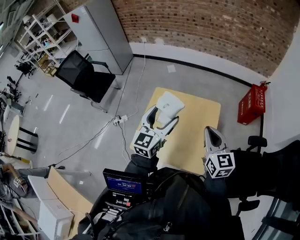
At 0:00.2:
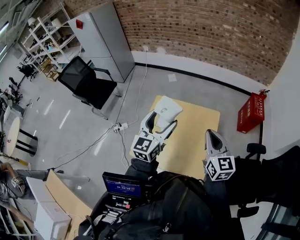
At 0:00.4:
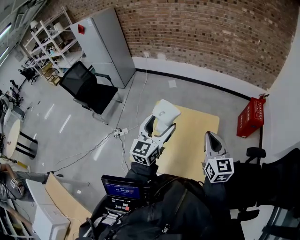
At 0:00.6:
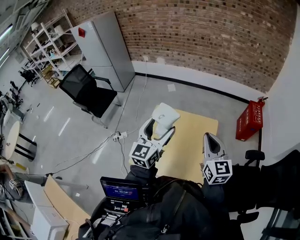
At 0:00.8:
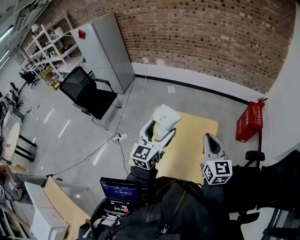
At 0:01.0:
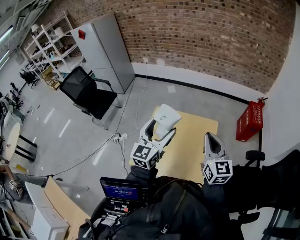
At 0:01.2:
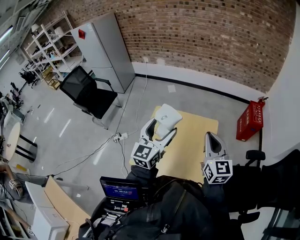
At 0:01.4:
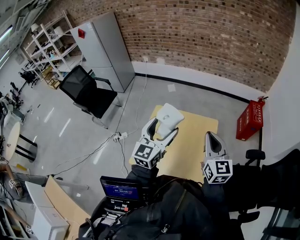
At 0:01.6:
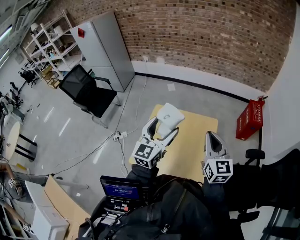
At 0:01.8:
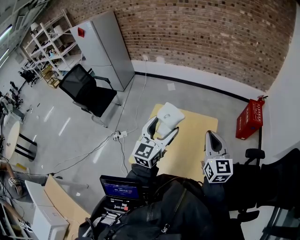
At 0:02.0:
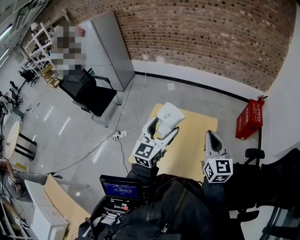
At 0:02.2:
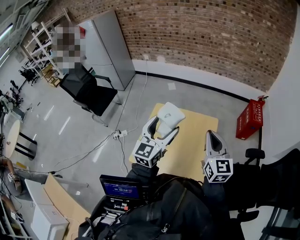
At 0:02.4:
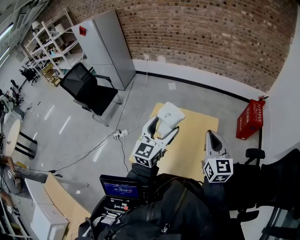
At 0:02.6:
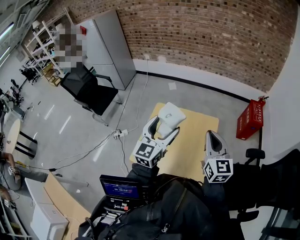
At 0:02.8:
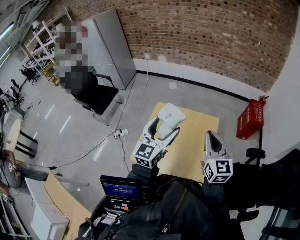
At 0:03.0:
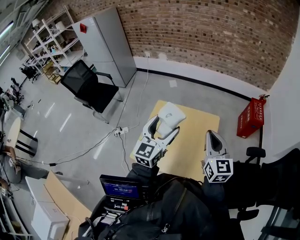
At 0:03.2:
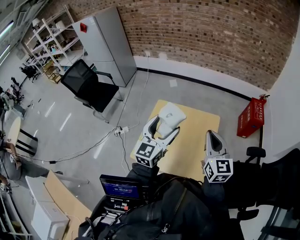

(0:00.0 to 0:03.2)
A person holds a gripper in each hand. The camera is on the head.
0:00.0 - 0:03.2: The grippers stay close to where they were, moving slightly.

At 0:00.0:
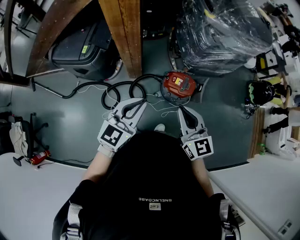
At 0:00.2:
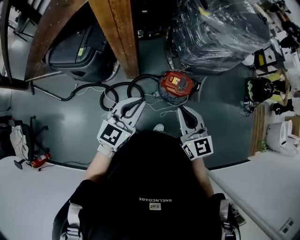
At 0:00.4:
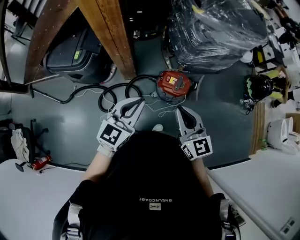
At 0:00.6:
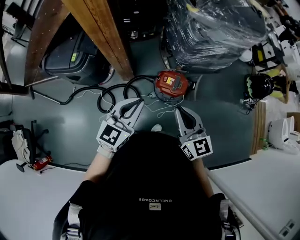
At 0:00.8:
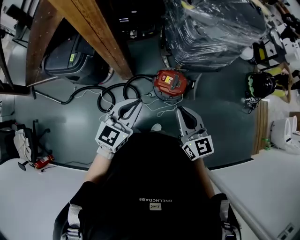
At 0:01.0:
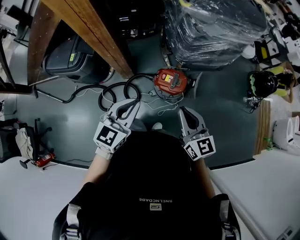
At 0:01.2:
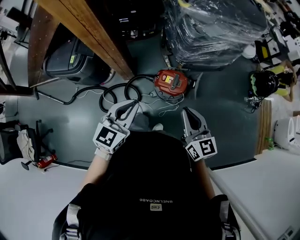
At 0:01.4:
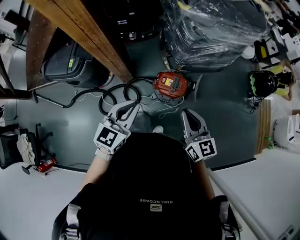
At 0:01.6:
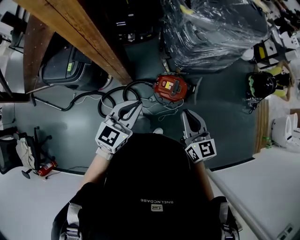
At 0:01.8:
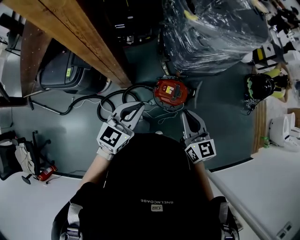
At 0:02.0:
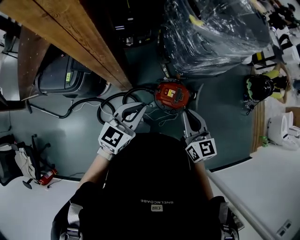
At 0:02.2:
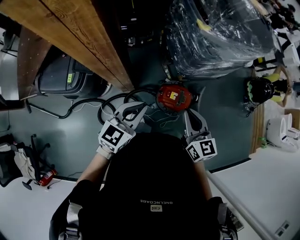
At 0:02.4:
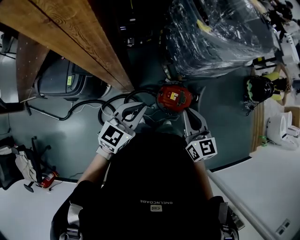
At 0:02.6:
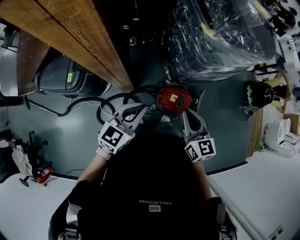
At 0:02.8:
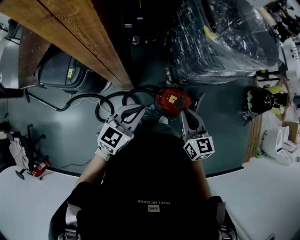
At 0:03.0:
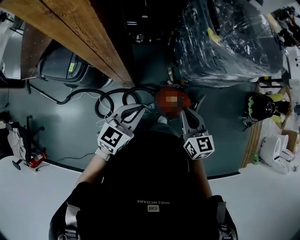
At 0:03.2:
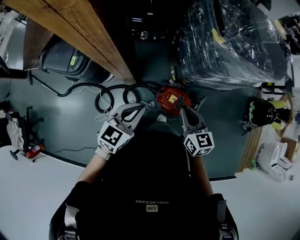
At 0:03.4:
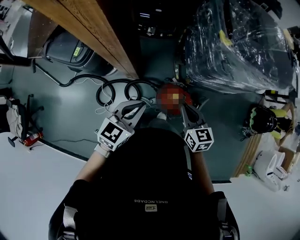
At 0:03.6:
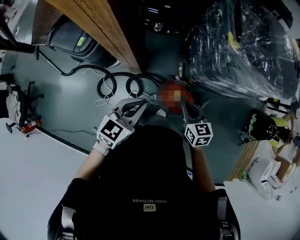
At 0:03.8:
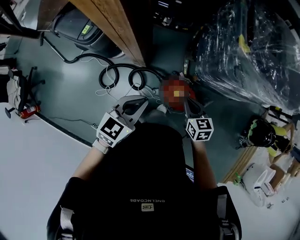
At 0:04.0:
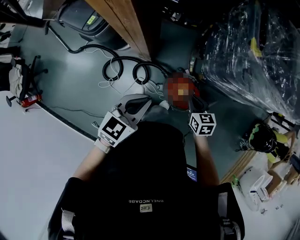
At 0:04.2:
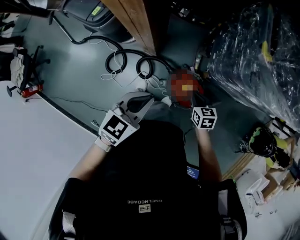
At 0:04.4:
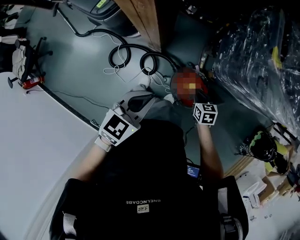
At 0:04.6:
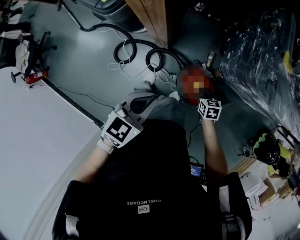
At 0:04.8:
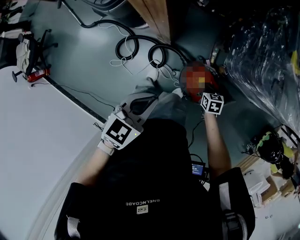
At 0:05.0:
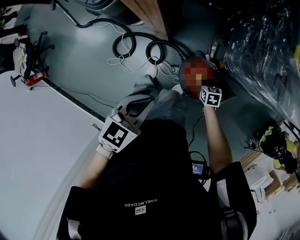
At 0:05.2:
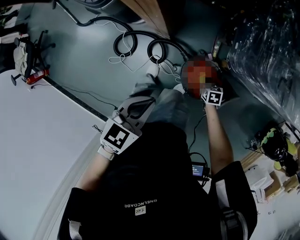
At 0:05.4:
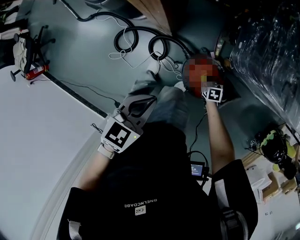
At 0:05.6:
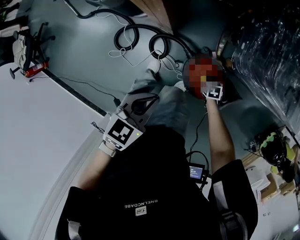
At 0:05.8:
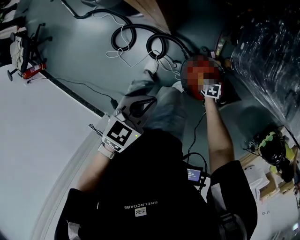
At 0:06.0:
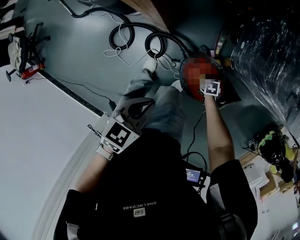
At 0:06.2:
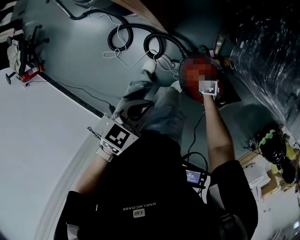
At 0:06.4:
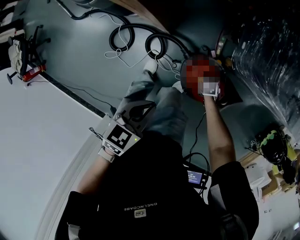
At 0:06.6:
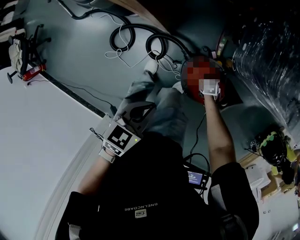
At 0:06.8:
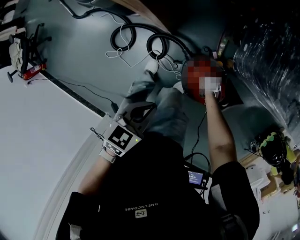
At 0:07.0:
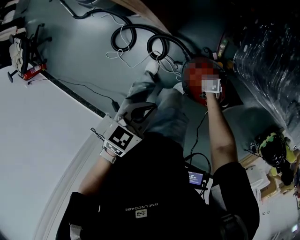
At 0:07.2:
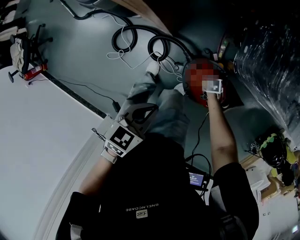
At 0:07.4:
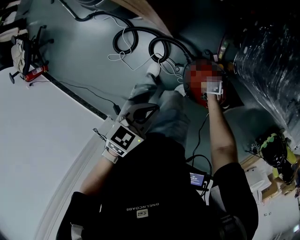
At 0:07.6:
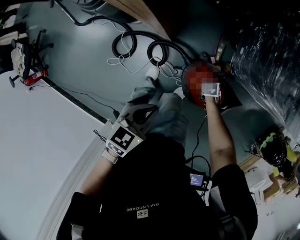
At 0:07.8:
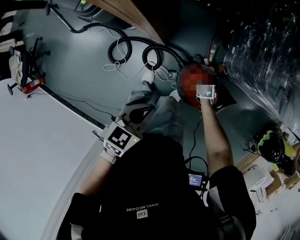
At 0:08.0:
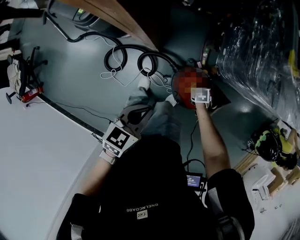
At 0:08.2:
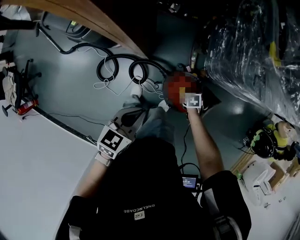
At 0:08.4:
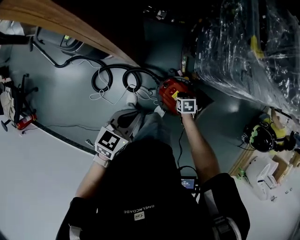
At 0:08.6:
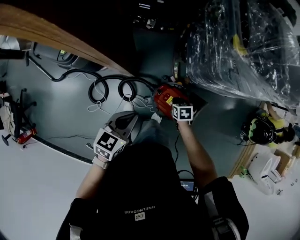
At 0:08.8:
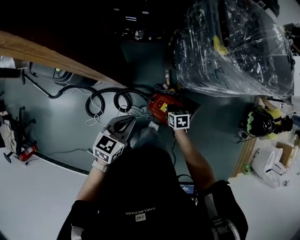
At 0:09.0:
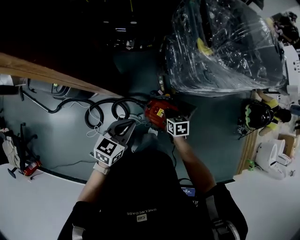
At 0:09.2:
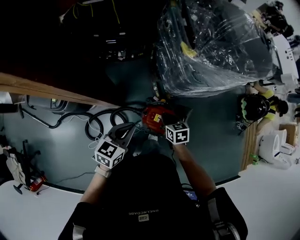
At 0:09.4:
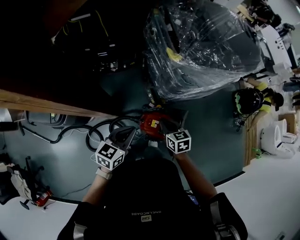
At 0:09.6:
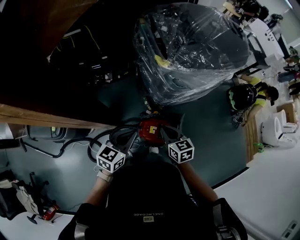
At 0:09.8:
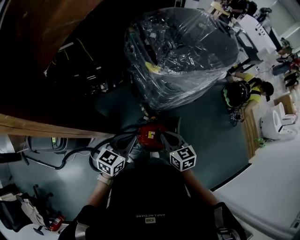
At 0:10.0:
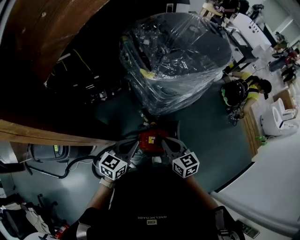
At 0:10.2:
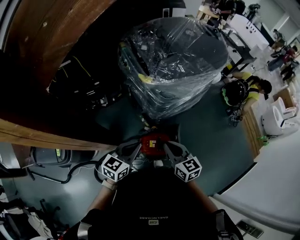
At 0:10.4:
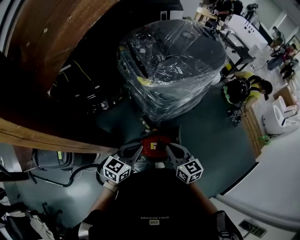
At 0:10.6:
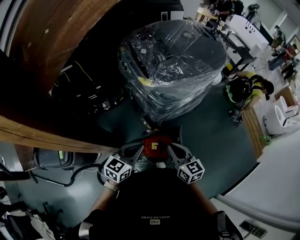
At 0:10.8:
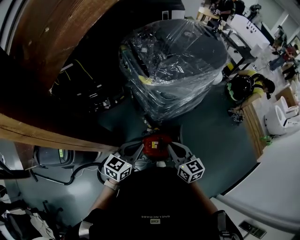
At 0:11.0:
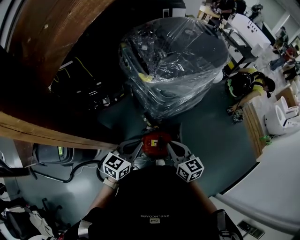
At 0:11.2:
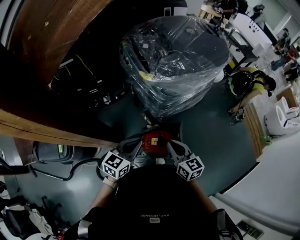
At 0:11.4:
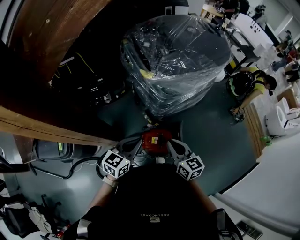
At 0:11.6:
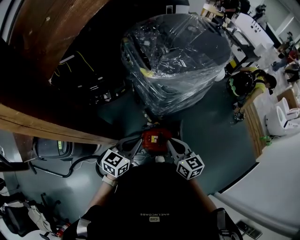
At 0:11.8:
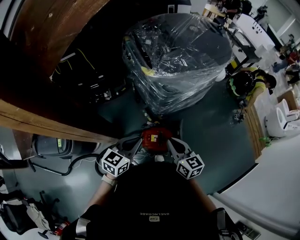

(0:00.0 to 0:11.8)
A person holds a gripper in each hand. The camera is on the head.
0:00.0 - 0:01.4: The right gripper heads to the right, covering some 15 cm, while the left gripper travels to the right and forward by some 10 cm.
0:01.4 - 0:03.0: Both grippers move forward and to the left, some 20 cm.
0:03.0 - 0:04.4: The left gripper heads downward, covering approximately 10 cm, and turns by roughly 20 degrees. The right gripper shifts roughly 30 cm downward, and changes its angle by some 40 degrees.
0:04.4 - 0:06.0: The left gripper shifts some 15 cm downward. The right gripper is displaced downward by approximately 30 cm, and swivels approximately 20 degrees.
0:06.0 - 0:07.4: The grippers stay close to where they were, moving slightly.
0:07.4 - 0:08.8: The left gripper shifts about 15 cm upward, while the right gripper travels upward by some 30 cm, and turns by roughly 30 degrees.
0:08.8 - 0:10.4: The left gripper moves some 20 cm, and turns by approximately 30 degrees. Meanwhile the right gripper is displaced upward by roughly 35 cm, and tilts its fingers approximately 40 degrees upward.
0:10.4 - 0:11.8: The grippers stay close to where they were, moving slightly.

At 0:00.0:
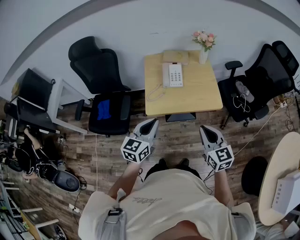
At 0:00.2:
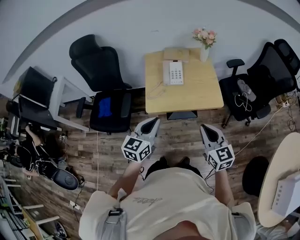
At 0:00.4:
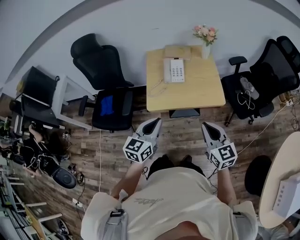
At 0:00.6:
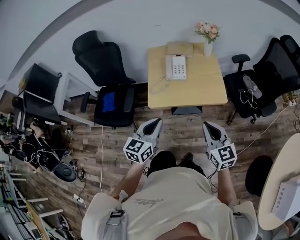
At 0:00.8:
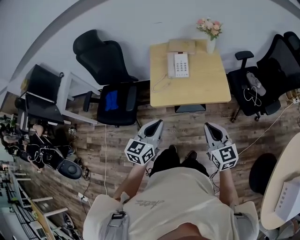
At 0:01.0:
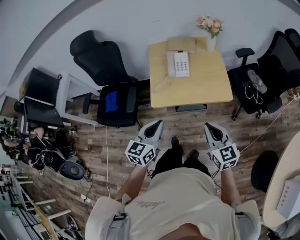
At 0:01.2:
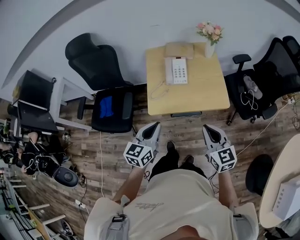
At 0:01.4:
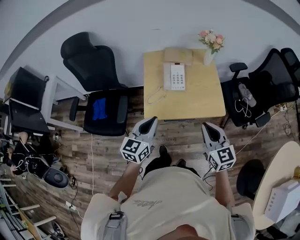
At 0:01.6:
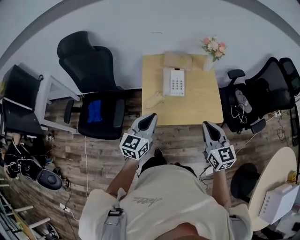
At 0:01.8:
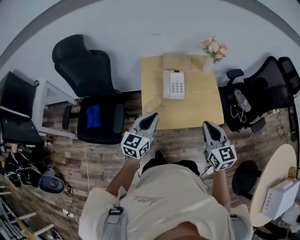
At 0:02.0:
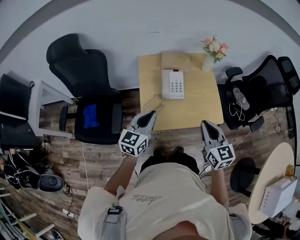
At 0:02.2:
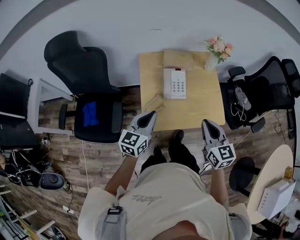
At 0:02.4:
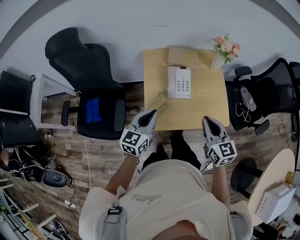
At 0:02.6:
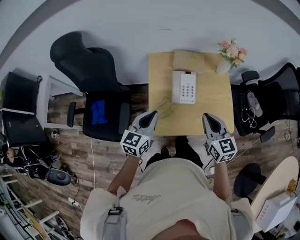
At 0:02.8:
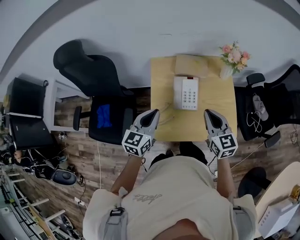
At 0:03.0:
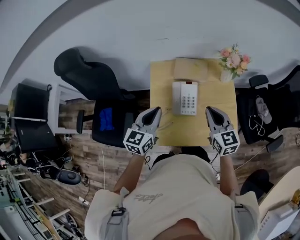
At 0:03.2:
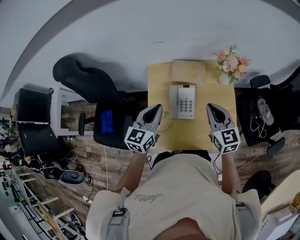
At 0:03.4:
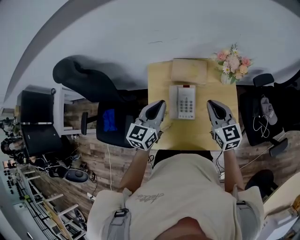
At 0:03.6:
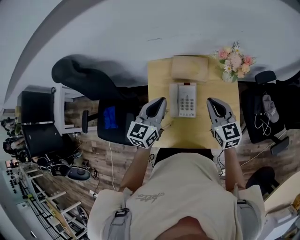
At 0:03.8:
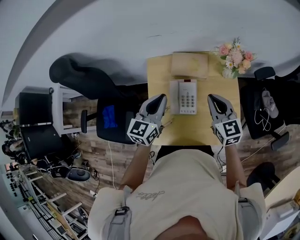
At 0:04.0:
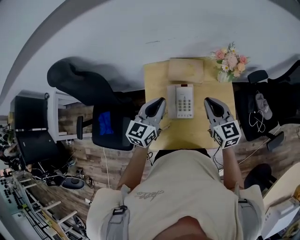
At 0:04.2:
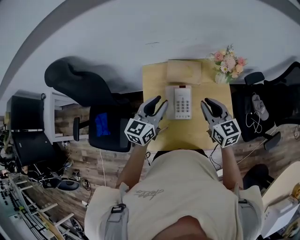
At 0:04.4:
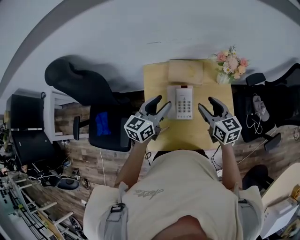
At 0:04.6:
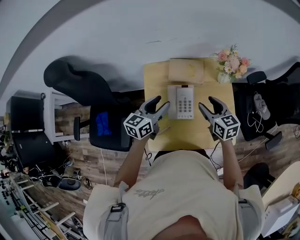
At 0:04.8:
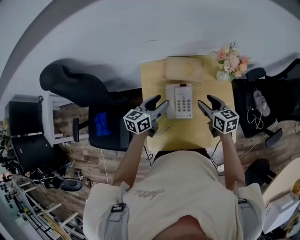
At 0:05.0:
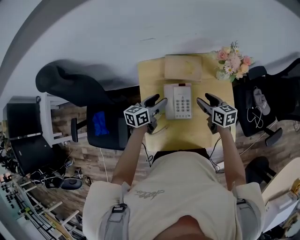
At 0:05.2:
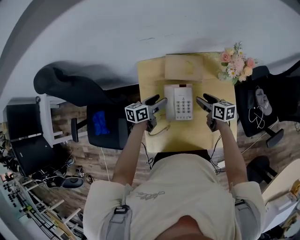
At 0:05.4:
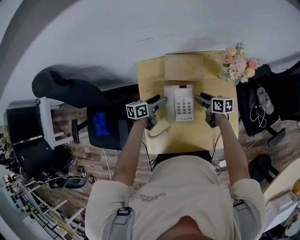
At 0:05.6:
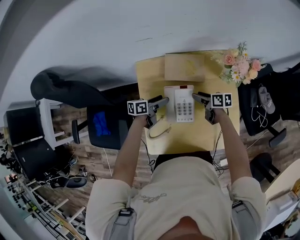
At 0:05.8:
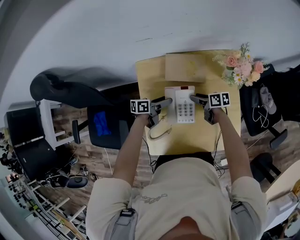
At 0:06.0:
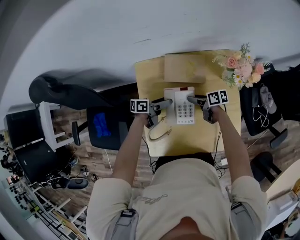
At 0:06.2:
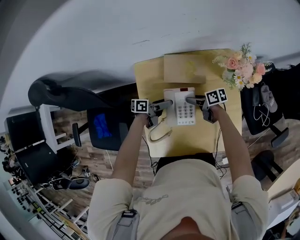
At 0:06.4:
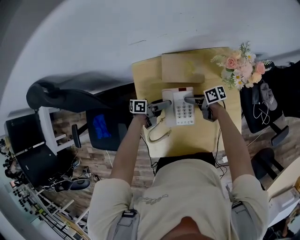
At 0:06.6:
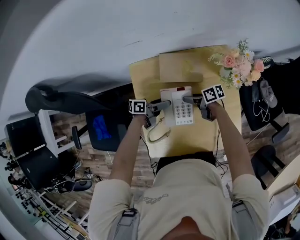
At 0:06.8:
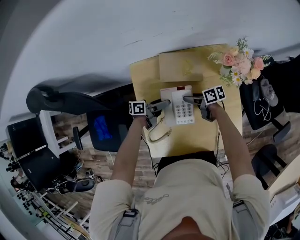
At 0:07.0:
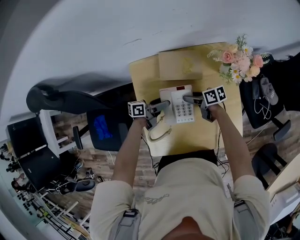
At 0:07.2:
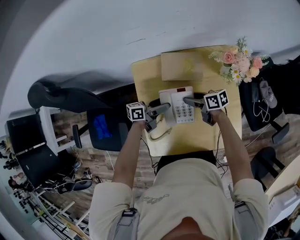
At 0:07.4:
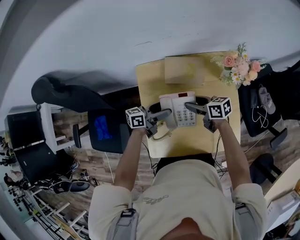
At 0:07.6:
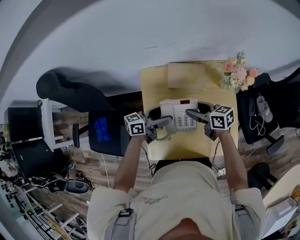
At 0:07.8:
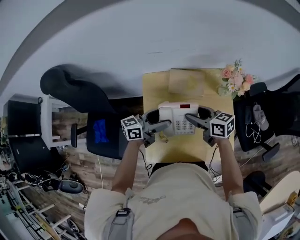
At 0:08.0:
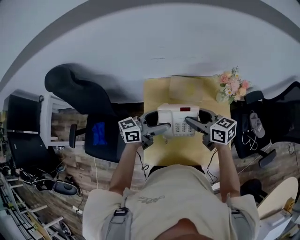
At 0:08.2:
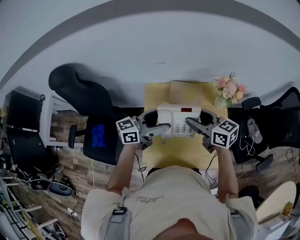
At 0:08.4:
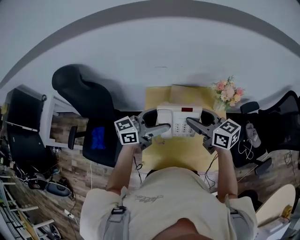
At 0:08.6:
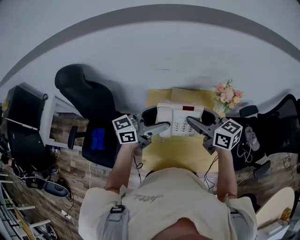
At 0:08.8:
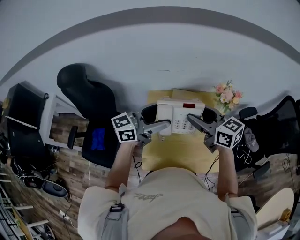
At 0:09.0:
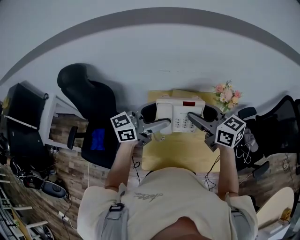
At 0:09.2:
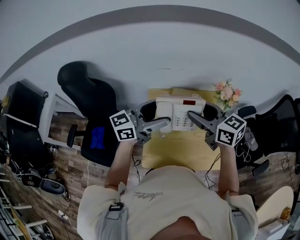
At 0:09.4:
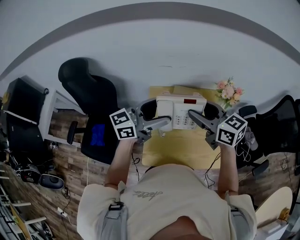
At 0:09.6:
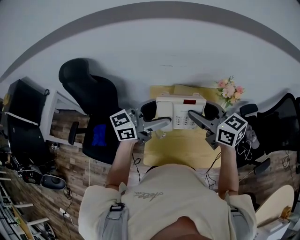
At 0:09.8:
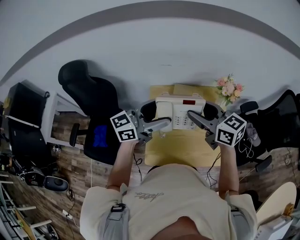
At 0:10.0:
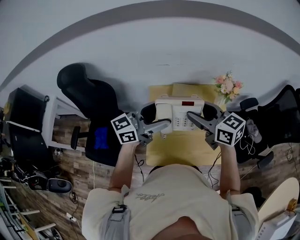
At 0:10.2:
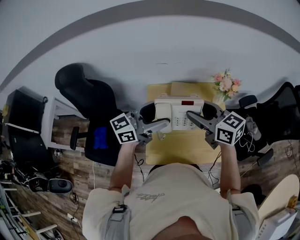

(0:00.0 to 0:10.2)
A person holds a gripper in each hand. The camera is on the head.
0:00.0 - 0:01.4: The grippers both shift forward by roughly 10 cm.
0:01.4 - 0:03.0: The two grippers go roughly 30 cm forward.
0:03.0 - 0:04.4: The grippers both shift forward by about 10 cm. The right gripper opens up, while the left gripper opens up.
0:04.4 - 0:05.8: The two grippers go some 25 cm downward. The right gripper swivels approximately 50 degrees; the left gripper rolls counterclockwise, seen from behind, by approximately 40 degrees.
0:05.8 - 0:07.2: The right gripper moves roughly 5 cm.
0:07.2 - 0:08.8: The grippers both shift upward by some 35 cm. The left gripper rolls clockwise, seen from behind, by about 40 degrees, while the right gripper turns by some 40 degrees.
0:08.8 - 0:10.2: There are only small adjustments of the grippers.
